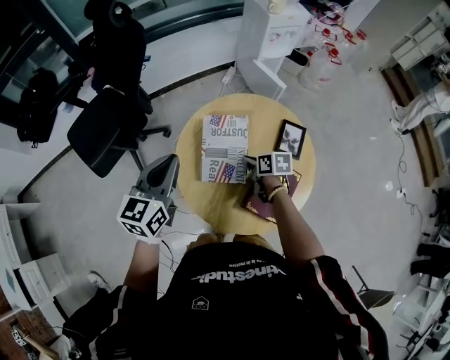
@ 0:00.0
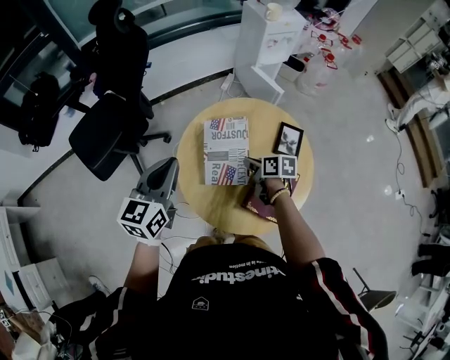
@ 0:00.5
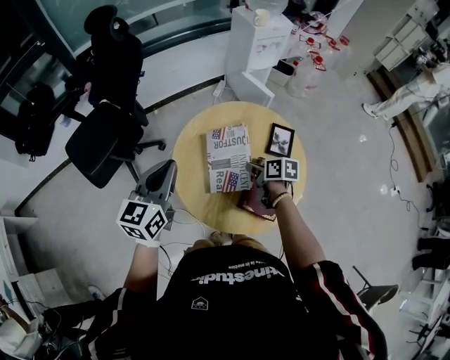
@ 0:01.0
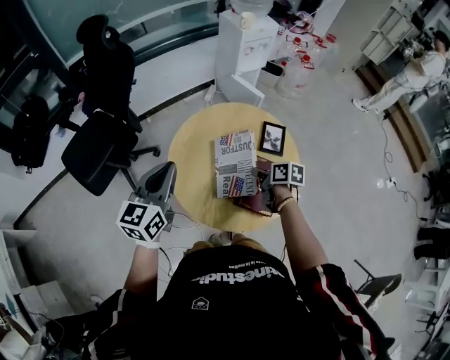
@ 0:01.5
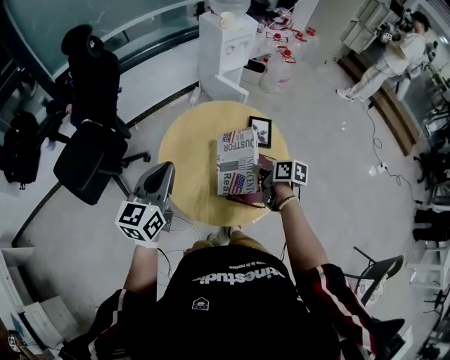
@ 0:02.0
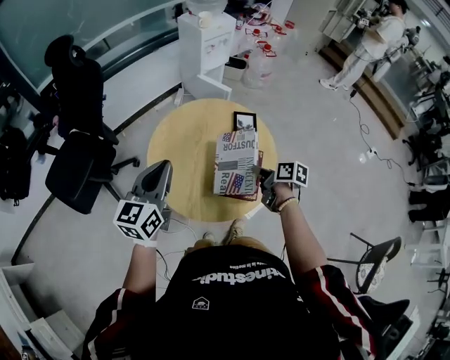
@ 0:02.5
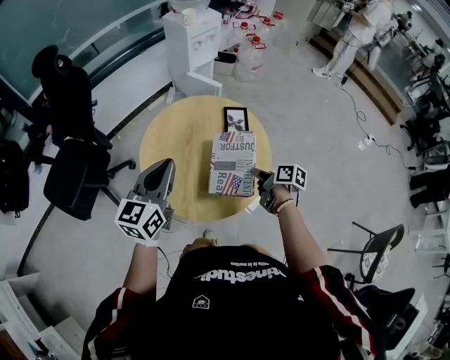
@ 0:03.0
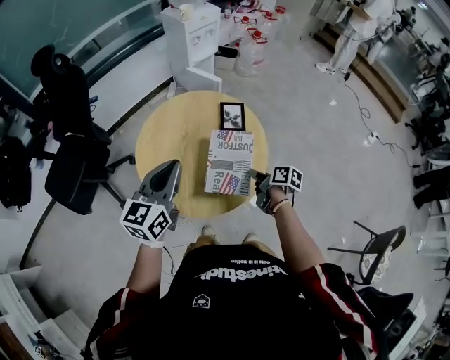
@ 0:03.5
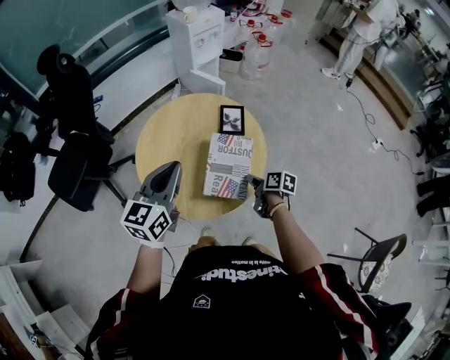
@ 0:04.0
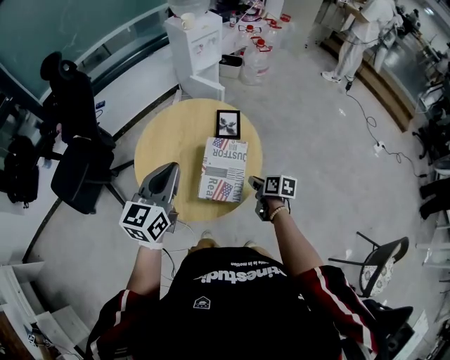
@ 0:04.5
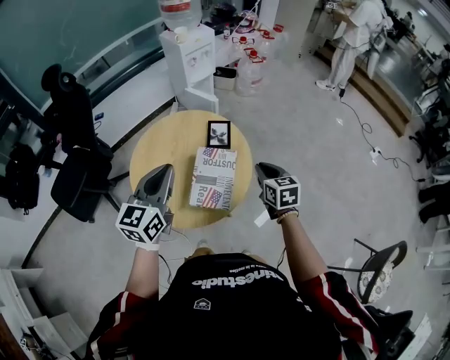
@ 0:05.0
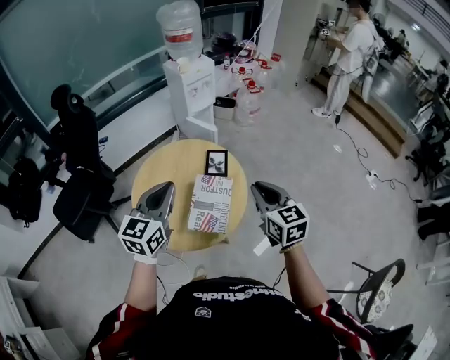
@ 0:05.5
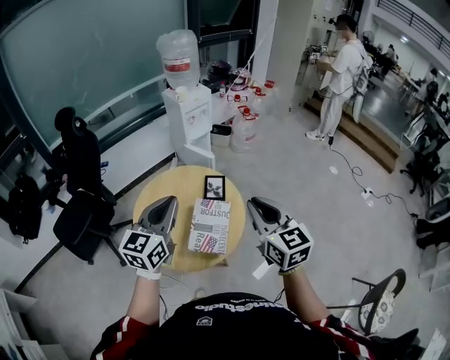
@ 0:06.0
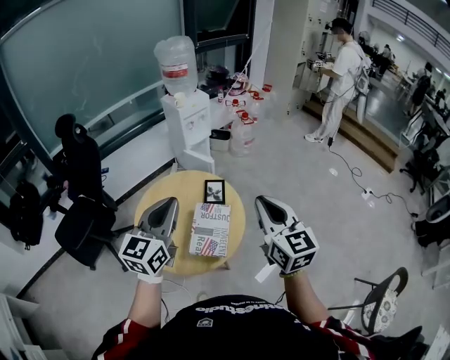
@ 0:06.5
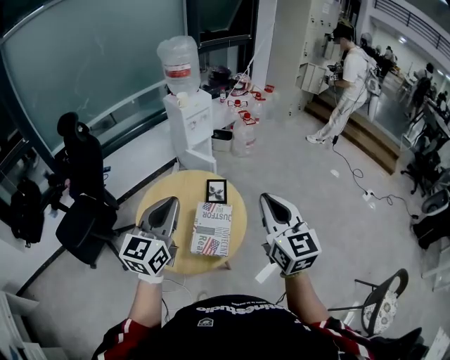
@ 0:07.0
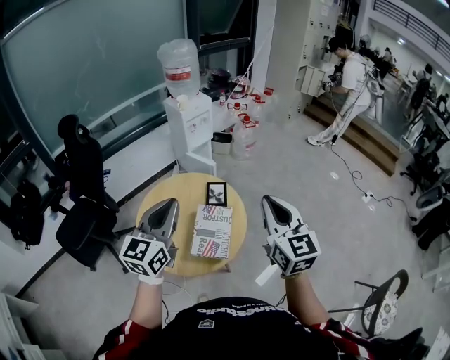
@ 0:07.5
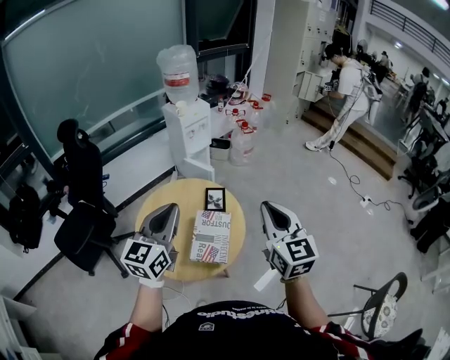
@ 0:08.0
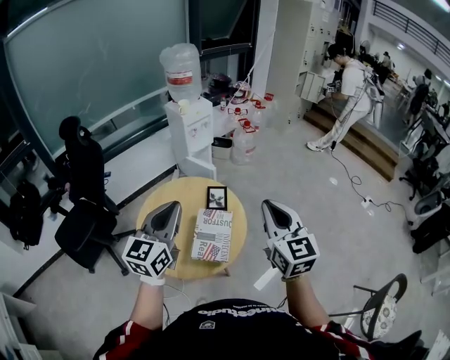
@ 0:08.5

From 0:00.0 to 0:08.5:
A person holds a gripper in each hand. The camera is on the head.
From 0:00.0 to 0:02.0: The right gripper goes approximately 15 cm backward, upward and to the right, and swivels roughly 20 degrees. Meanwhile the left gripper moves backward, about 5 cm.
From 0:02.0 to 0:04.0: The right gripper is displaced to the right, backward and downward by approximately 15 cm. The left gripper moves to the right, roughly 15 cm.
From 0:04.0 to 0:06.5: The left gripper goes roughly 20 cm upward and to the right; the right gripper travels upward by roughly 40 cm, and points its fingers some 40 degrees further upward.
From 0:06.5 to 0:08.5: There are only small adjustments of the grippers.

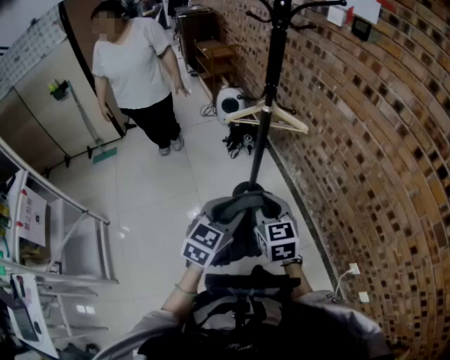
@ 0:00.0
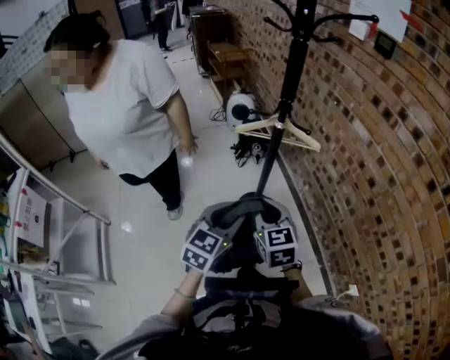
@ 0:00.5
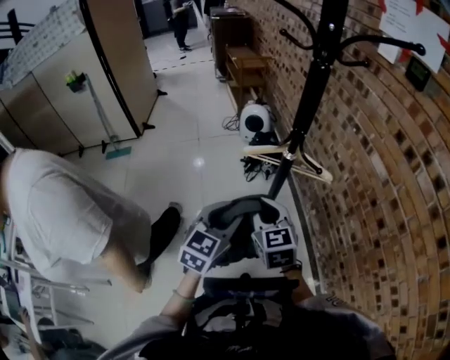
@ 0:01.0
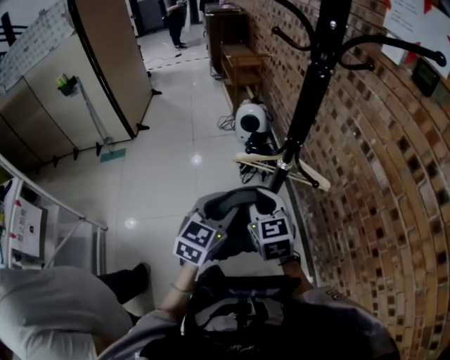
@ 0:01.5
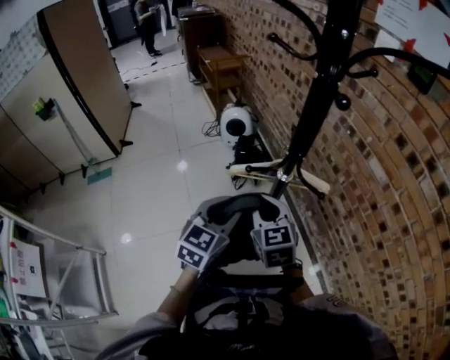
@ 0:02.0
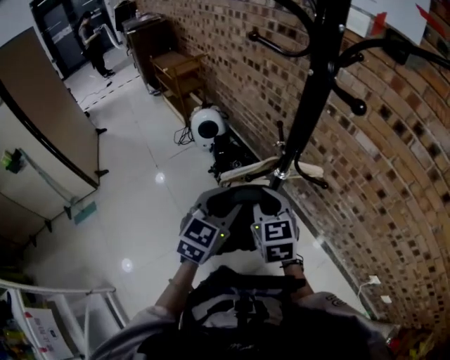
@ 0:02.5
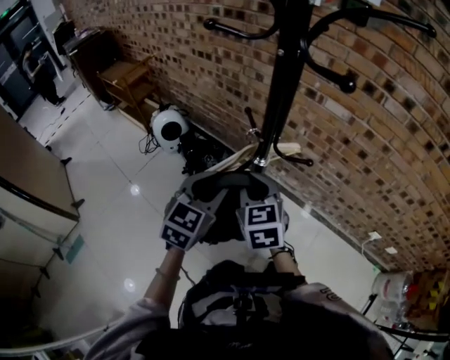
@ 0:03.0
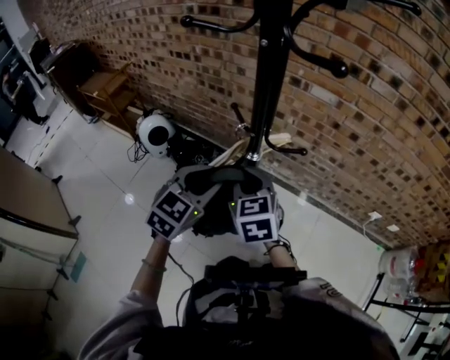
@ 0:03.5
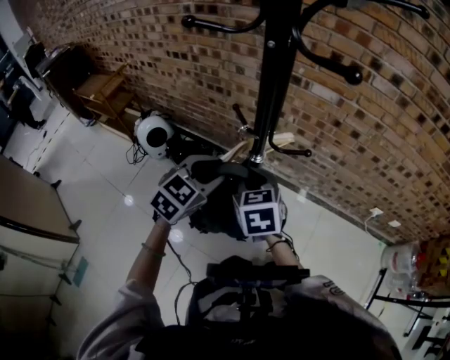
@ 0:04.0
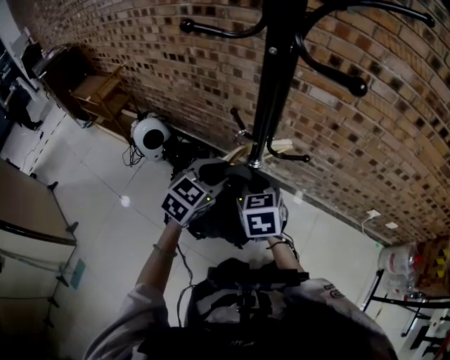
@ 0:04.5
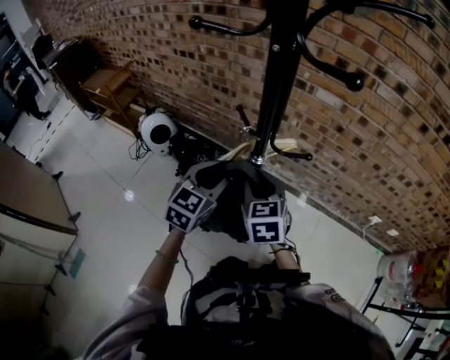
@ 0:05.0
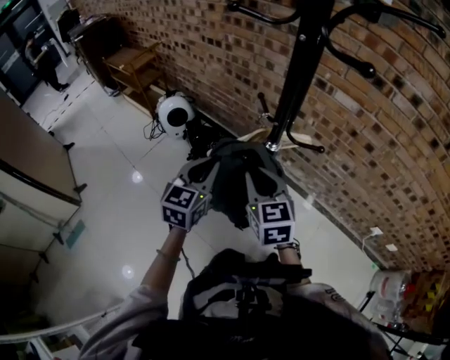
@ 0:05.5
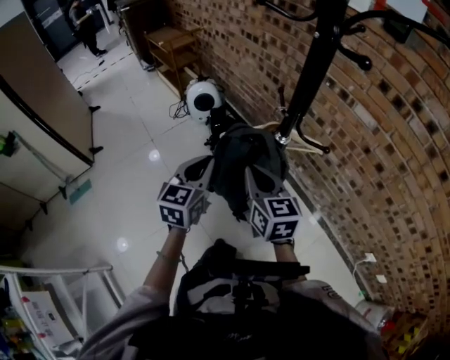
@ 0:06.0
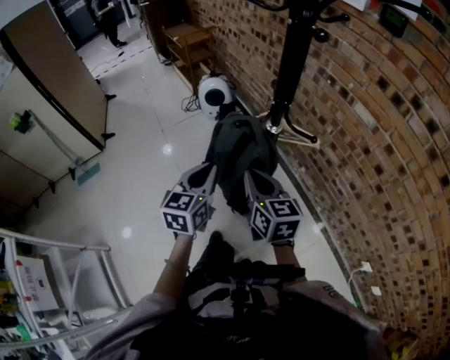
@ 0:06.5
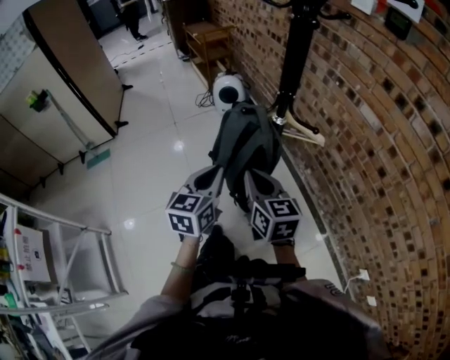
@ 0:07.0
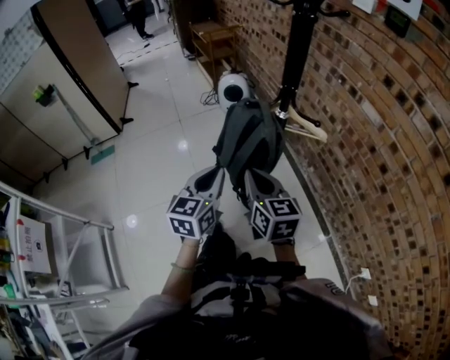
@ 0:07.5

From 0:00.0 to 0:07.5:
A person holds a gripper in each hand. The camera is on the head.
From 0:00.0 to 0:02.0: Both grippers move forward, about 30 cm.
From 0:02.0 to 0:04.0: The right gripper changes place by roughly 10 cm, and turns by approximately 50 degrees, while the left gripper ends up roughly 15 cm from where it was, and swivels roughly 60 degrees.
From 0:04.0 to 0:05.5: The right gripper travels backward by roughly 5 cm. Meanwhile the left gripper shifts approximately 5 cm to the left, turns by approximately 40 degrees, and closes its fingers.
From 0:05.5 to 0:07.5: The left gripper shifts by about 20 cm, and turns by some 30 degrees; the right gripper shifts by approximately 15 cm, and rotates about 30 degrees.

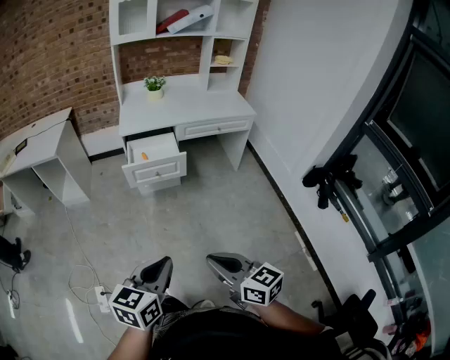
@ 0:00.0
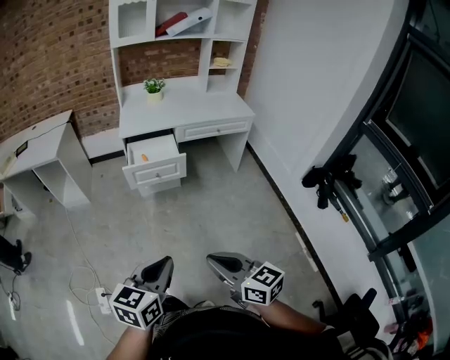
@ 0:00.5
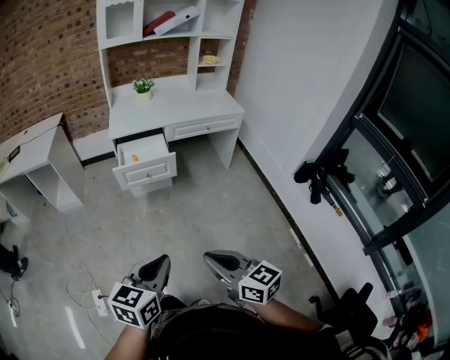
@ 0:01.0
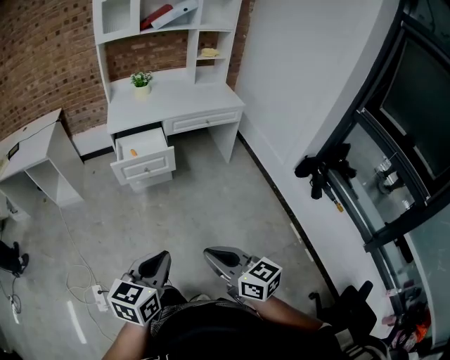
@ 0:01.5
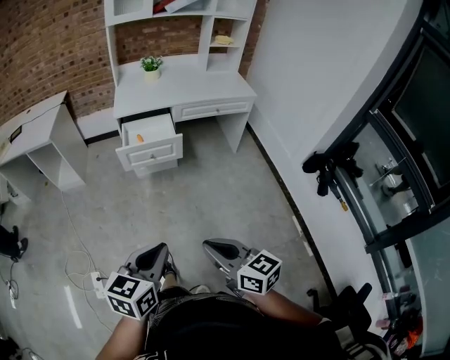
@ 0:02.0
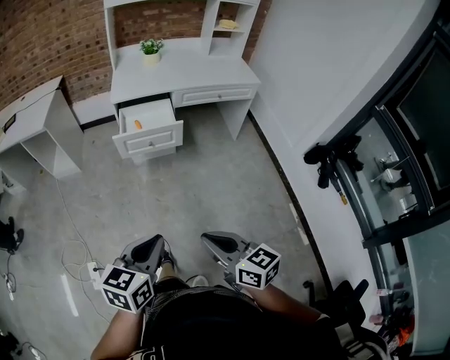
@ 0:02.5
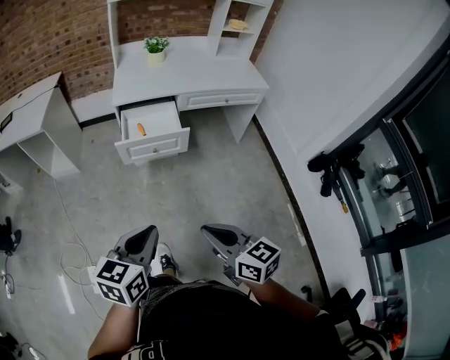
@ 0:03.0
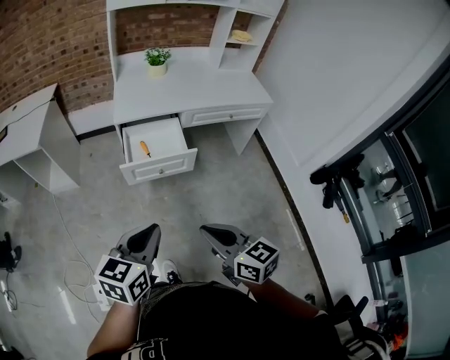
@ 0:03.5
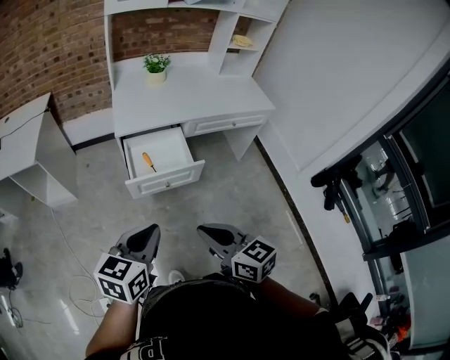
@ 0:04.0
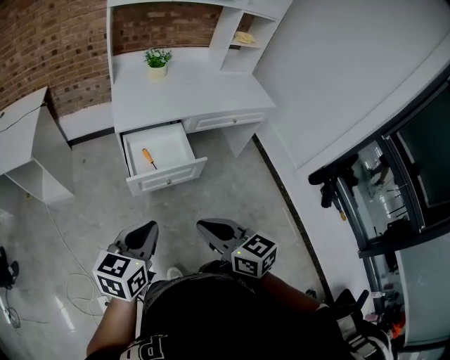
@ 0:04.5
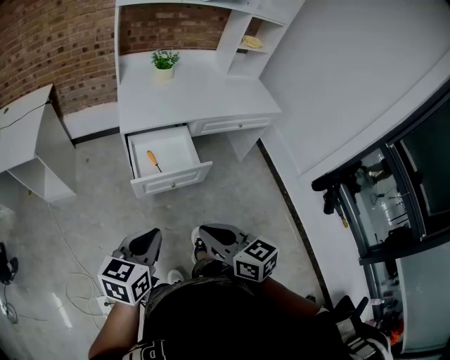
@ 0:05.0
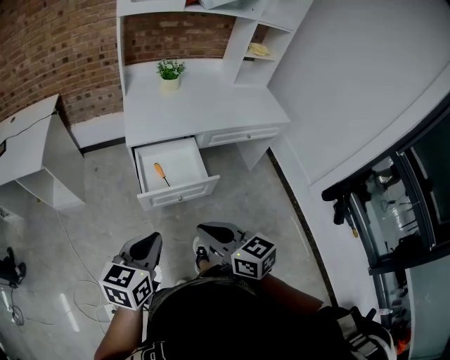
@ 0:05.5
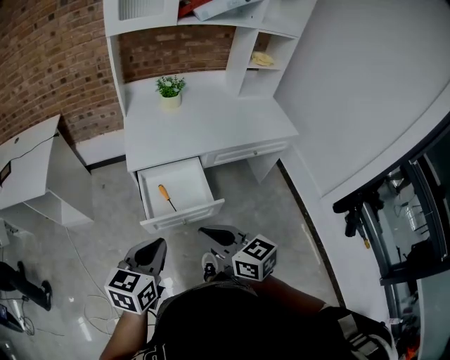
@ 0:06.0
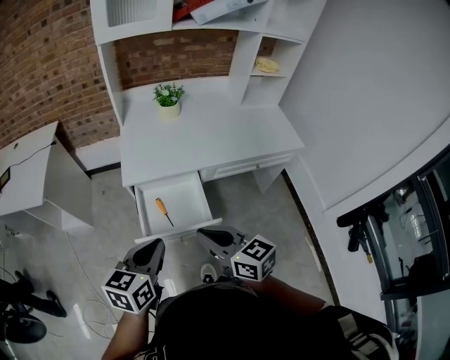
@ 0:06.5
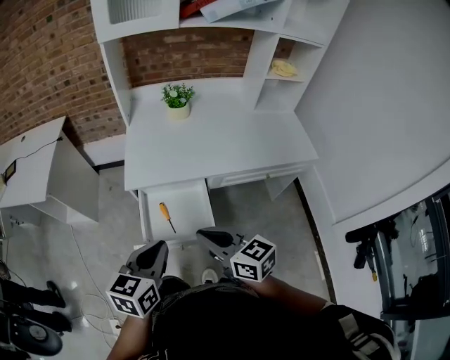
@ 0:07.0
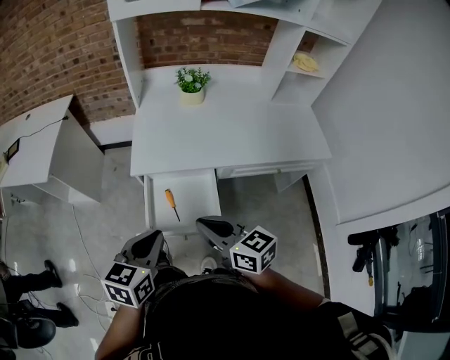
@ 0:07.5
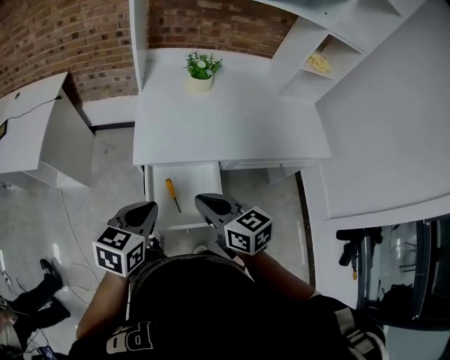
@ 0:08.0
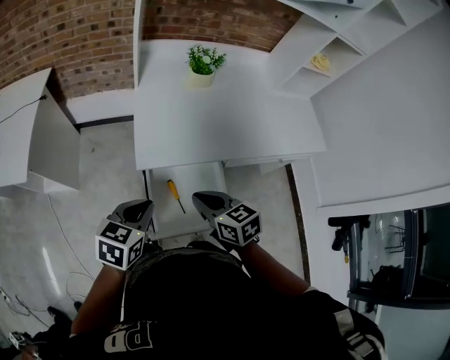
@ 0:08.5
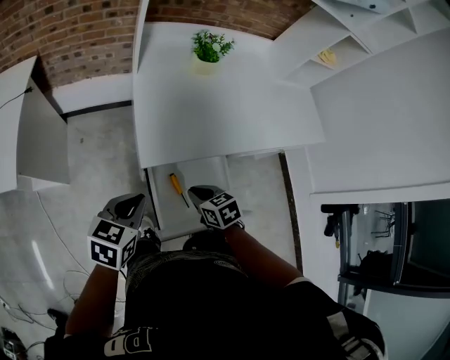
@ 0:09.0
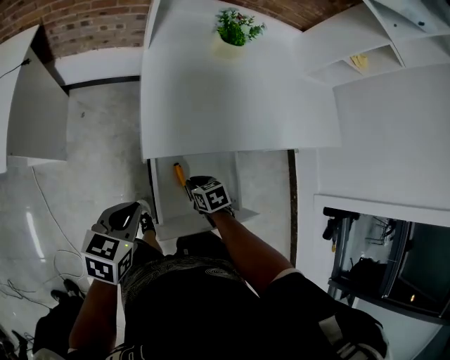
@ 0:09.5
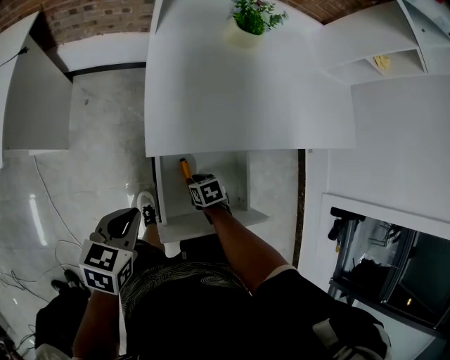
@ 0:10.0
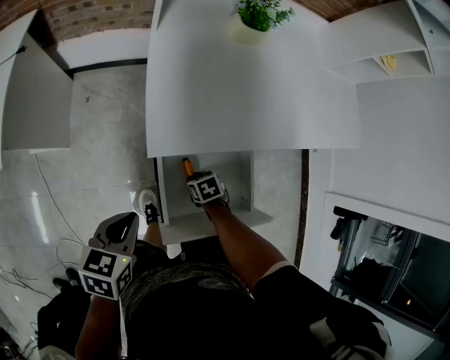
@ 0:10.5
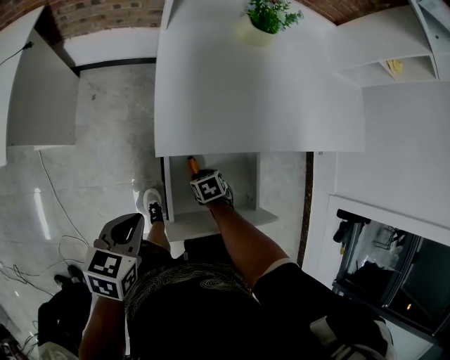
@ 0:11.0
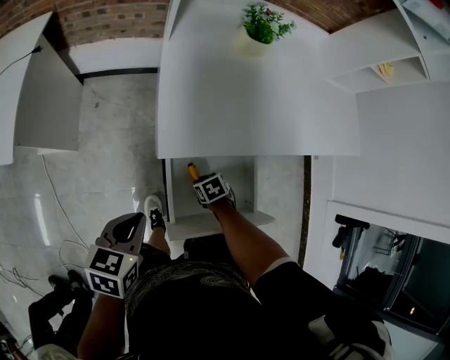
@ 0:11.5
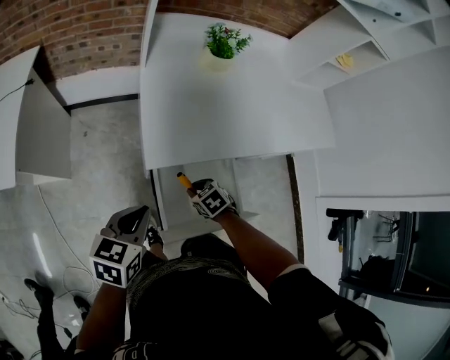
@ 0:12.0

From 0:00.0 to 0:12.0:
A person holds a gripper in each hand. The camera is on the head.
From 0:00.0 to 0:02.0: There are only small adjustments of the grippers.
From 0:02.0 to 0:04.0: Both grippers travel together forward and to the left, some 35 cm.
From 0:04.0 to 0:06.0: The two grippers go about 15 cm forward.
From 0:06.0 to 0:08.0: The two grippers go about 20 cm forward.
From 0:08.0 to 0:10.0: The left gripper travels downward and to the left by roughly 25 cm, while the right gripper heads downward, covering some 40 cm, and points its fingers roughly 50 degrees further downward.
From 0:10.0 to 0:12.0: The left gripper goes about 5 cm upward; the right gripper heads upward, covering roughly 10 cm.
